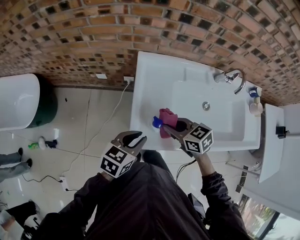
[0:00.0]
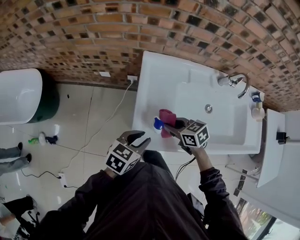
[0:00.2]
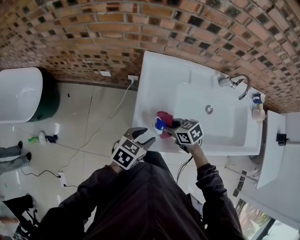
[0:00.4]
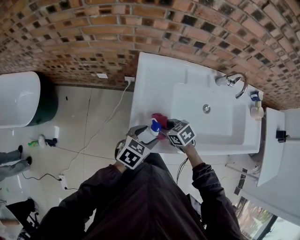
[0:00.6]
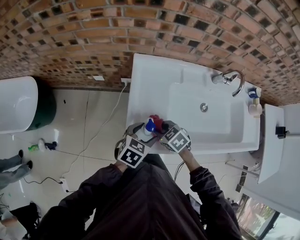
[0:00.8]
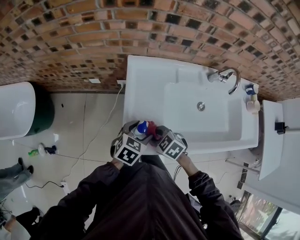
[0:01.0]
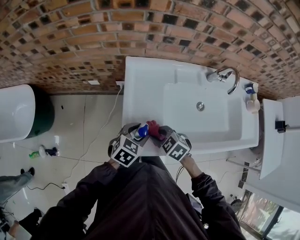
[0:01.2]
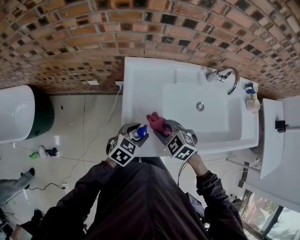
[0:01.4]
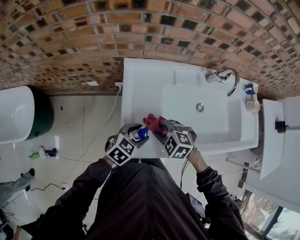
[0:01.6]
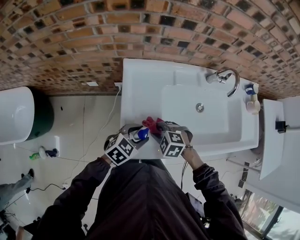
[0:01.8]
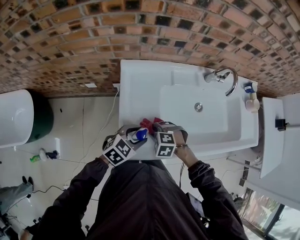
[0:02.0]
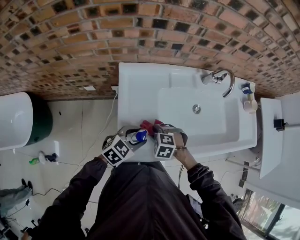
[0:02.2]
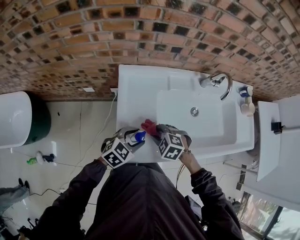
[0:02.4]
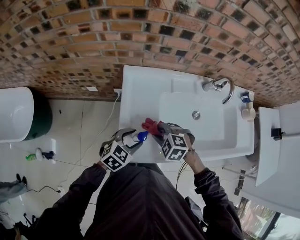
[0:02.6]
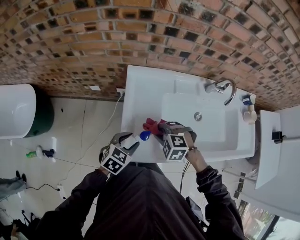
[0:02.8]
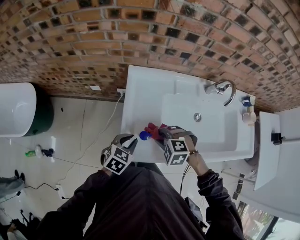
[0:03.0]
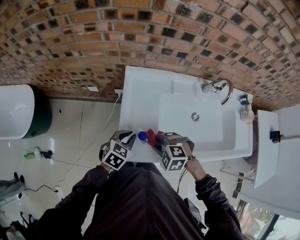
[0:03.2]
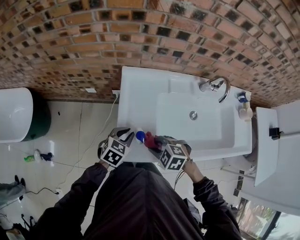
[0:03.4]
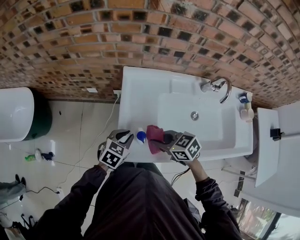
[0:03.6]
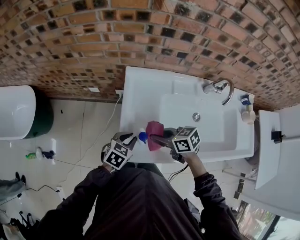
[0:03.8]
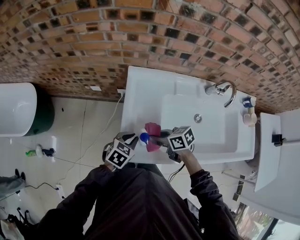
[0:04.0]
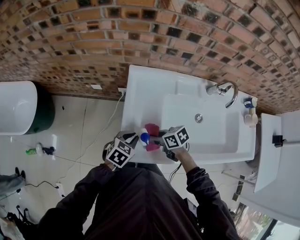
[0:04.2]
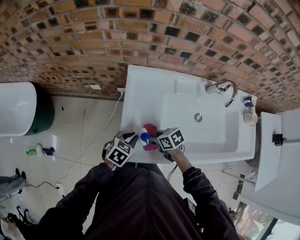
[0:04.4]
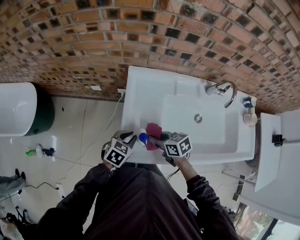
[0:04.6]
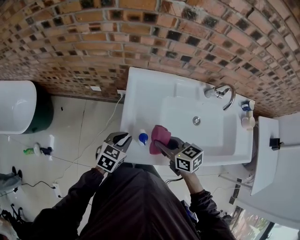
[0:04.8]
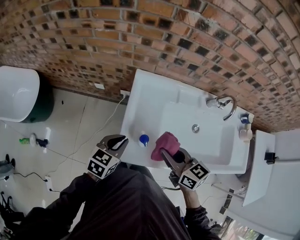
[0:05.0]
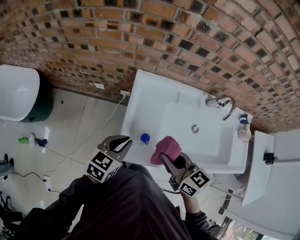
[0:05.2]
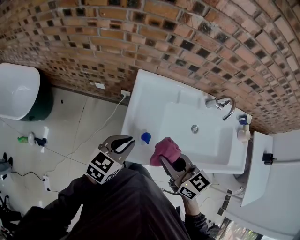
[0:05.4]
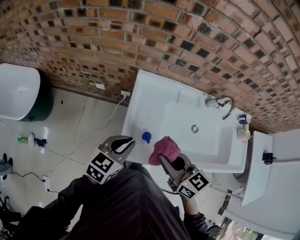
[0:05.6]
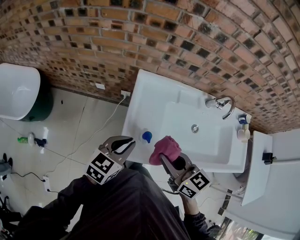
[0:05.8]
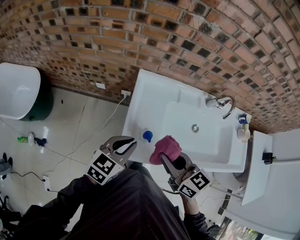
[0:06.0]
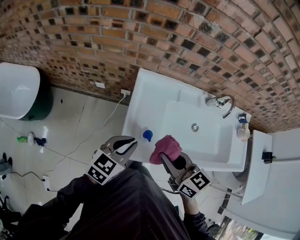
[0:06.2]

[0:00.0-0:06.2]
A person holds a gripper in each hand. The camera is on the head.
0:00.0 to 0:01.6: The left gripper moves approximately 10 cm, turns by some 20 degrees, and opens its fingers, while the right gripper changes its angle by about 40 degrees.
0:01.6 to 0:03.2: The right gripper moves roughly 10 cm downward and comes back, while the left gripper closes its fingers.
0:03.2 to 0:04.6: The right gripper moves roughly 10 cm downward and comes back, and rotates around the line of its fingers by roughly 60 degrees, clockwise from behind.
0:04.6 to 0:06.2: The grippers both shift upward by about 20 cm. The right gripper changes its angle by about 30 degrees; the left gripper rotates roughly 20 degrees.

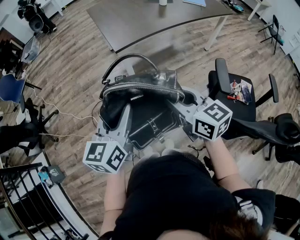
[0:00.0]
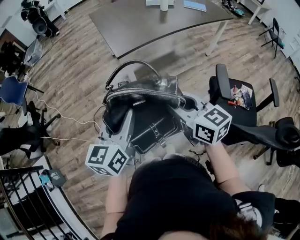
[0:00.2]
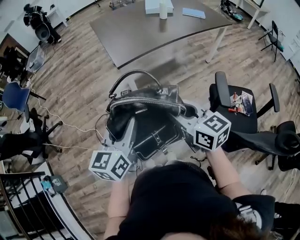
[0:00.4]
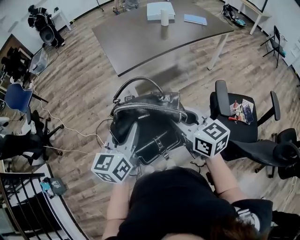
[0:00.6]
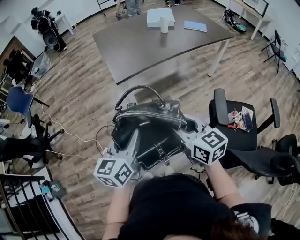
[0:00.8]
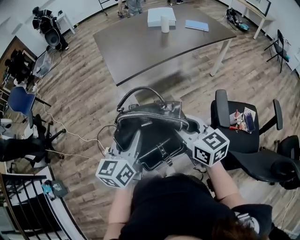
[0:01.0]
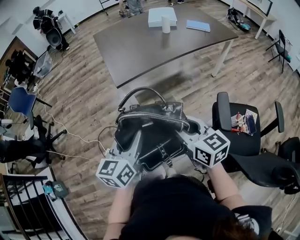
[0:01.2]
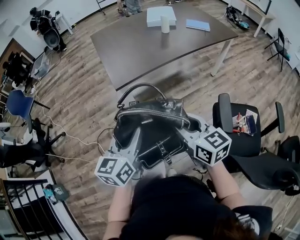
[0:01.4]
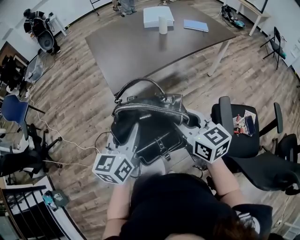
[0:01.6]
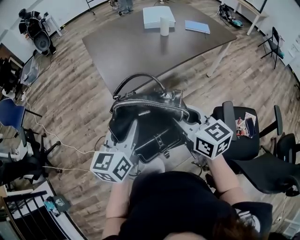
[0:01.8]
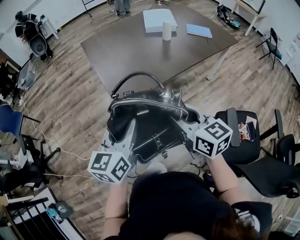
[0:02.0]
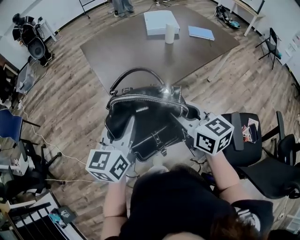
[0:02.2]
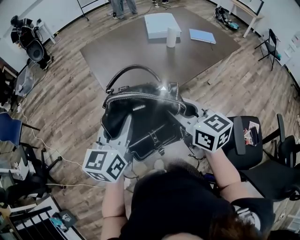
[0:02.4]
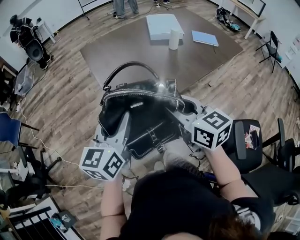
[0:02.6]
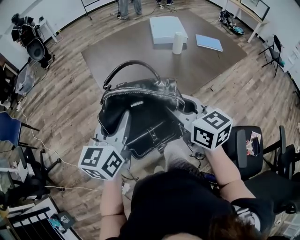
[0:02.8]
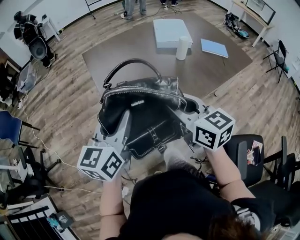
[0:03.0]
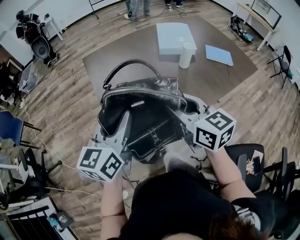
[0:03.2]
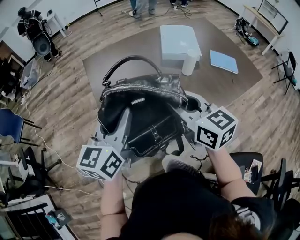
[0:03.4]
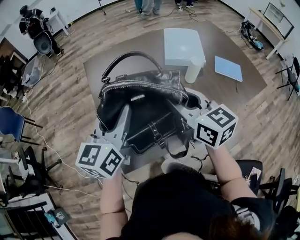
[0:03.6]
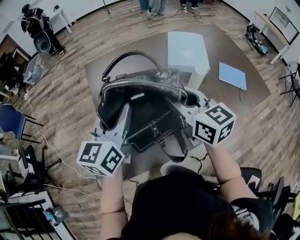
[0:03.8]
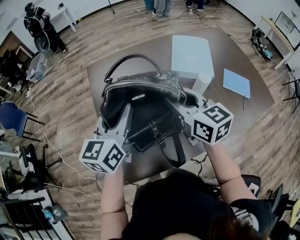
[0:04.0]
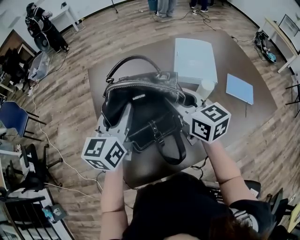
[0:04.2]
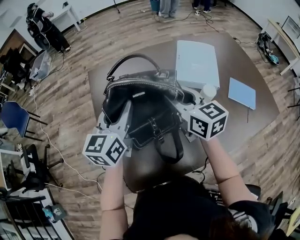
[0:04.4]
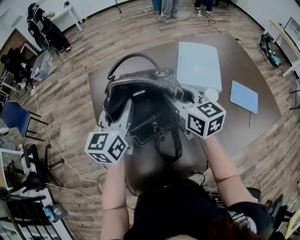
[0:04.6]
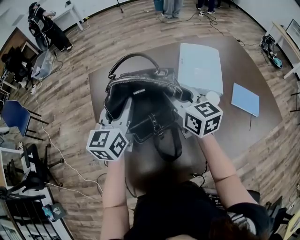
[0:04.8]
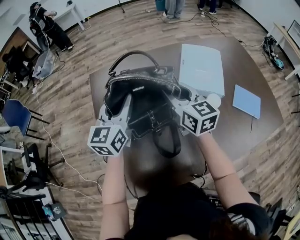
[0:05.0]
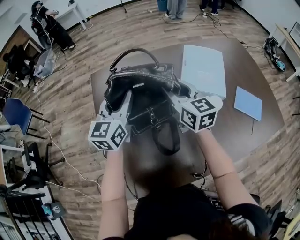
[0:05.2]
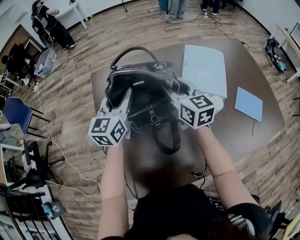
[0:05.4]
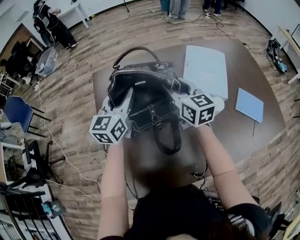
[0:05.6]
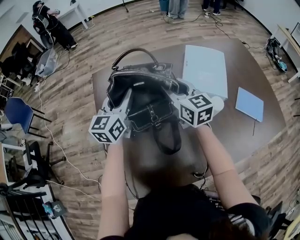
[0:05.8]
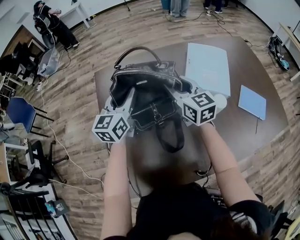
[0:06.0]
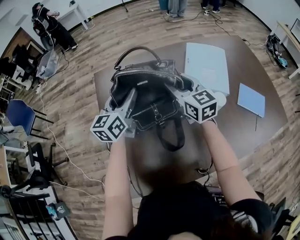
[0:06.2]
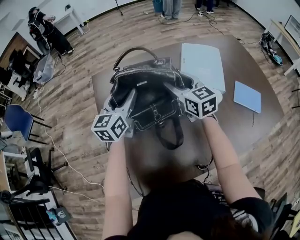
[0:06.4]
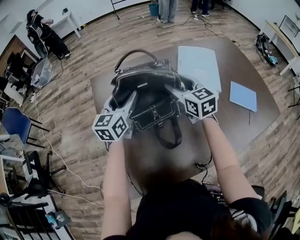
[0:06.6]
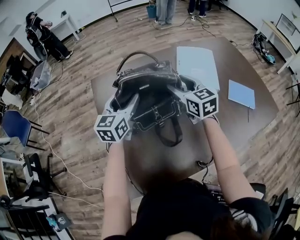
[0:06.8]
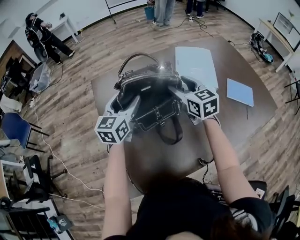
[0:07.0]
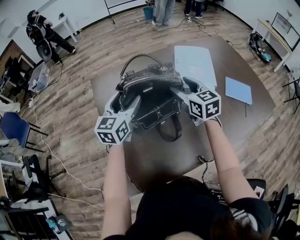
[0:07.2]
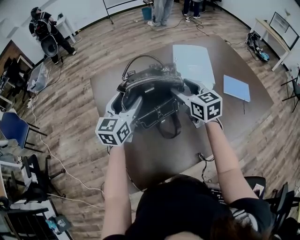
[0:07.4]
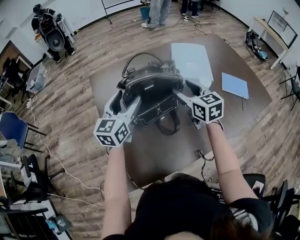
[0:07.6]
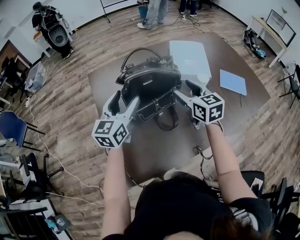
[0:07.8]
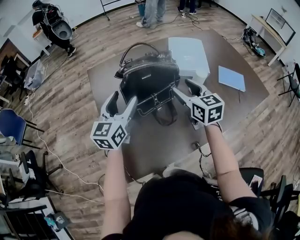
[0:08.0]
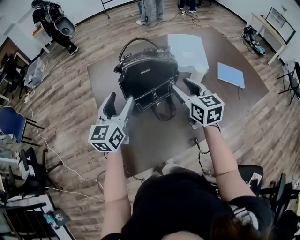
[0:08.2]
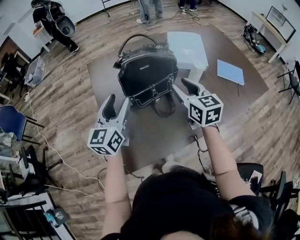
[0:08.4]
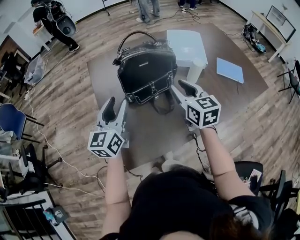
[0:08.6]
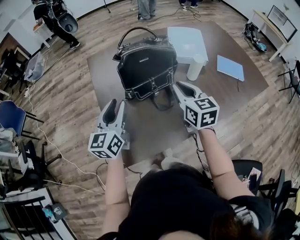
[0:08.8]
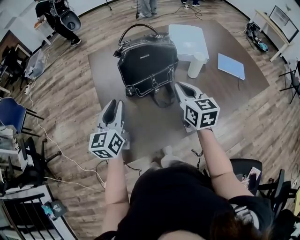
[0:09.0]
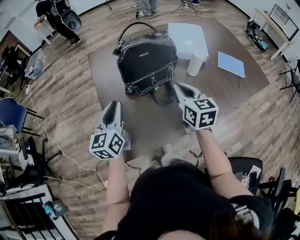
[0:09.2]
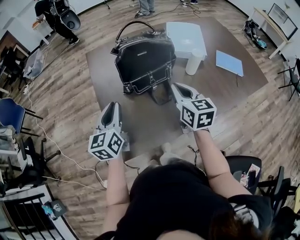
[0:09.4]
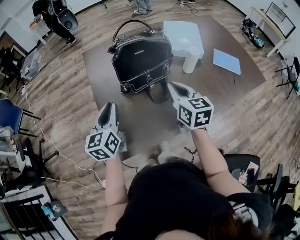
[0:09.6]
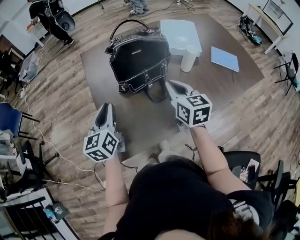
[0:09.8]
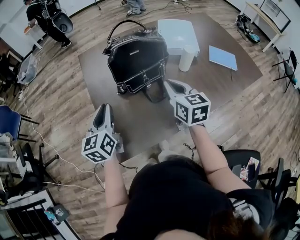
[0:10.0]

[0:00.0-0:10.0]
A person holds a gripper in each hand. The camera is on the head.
0:00.0 to 0:01.4: The left gripper is displaced forward and to the right by about 15 cm; the right gripper heads to the right and forward, covering approximately 15 cm.
0:01.4 to 0:02.8: The grippers both shift forward by roughly 35 cm.
0:02.8 to 0:04.2: Both grippers move forward, about 35 cm.
0:04.2 to 0:05.8: Both grippers move forward, some 15 cm.
0:05.8 to 0:07.2: The grippers both shift backward by roughly 5 cm. The left gripper opens up. Meanwhile the right gripper opens up.
0:07.2 to 0:08.6: Both grippers travel together backward, some 15 cm. The right gripper closes.
0:08.6 to 0:10.0: The left gripper moves some 5 cm, and closes up, while the right gripper closes.

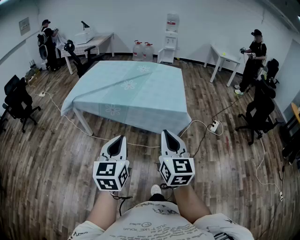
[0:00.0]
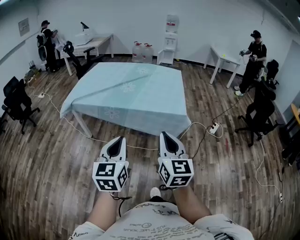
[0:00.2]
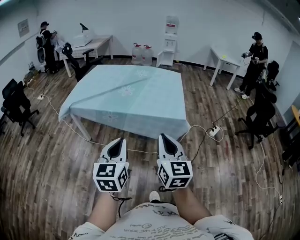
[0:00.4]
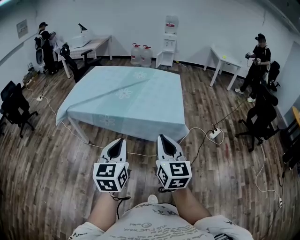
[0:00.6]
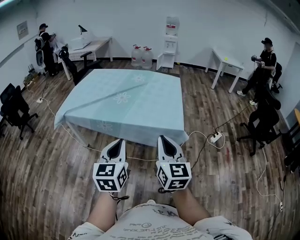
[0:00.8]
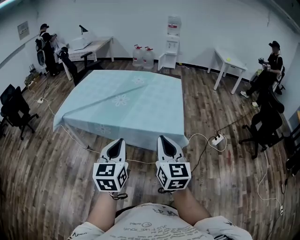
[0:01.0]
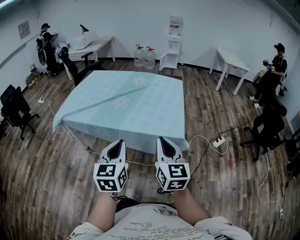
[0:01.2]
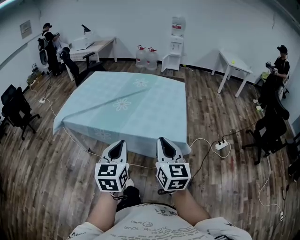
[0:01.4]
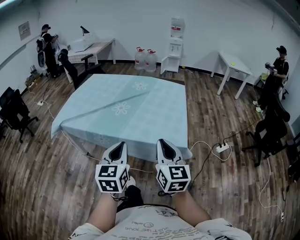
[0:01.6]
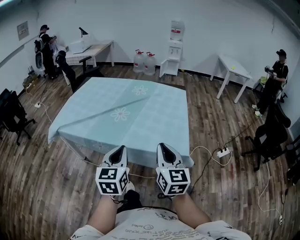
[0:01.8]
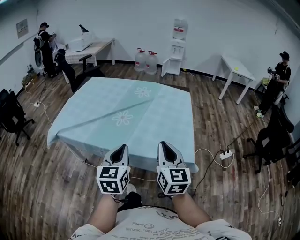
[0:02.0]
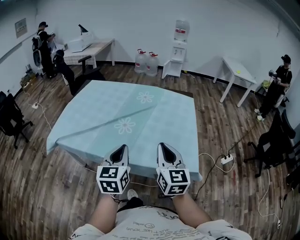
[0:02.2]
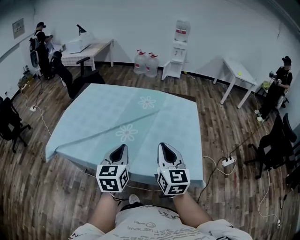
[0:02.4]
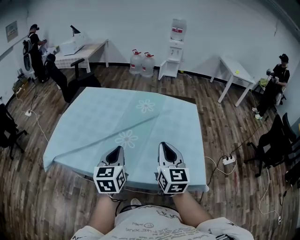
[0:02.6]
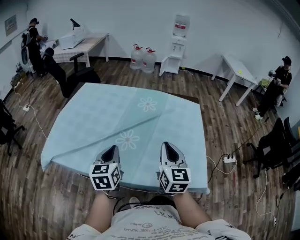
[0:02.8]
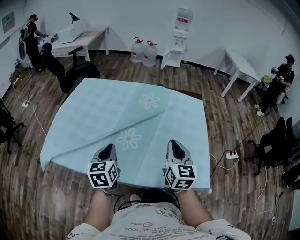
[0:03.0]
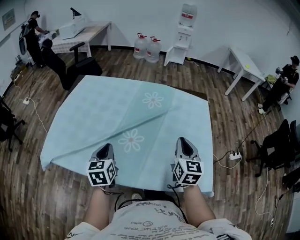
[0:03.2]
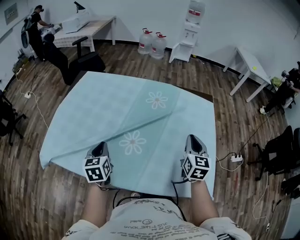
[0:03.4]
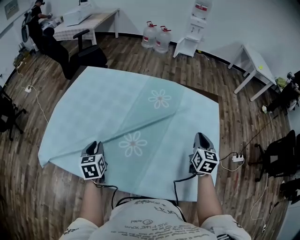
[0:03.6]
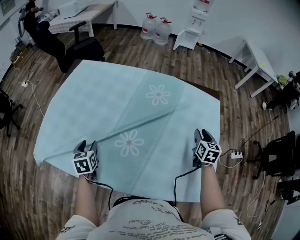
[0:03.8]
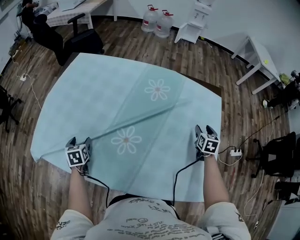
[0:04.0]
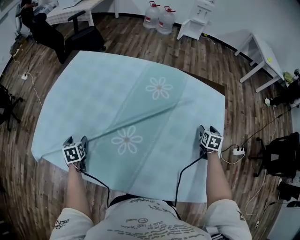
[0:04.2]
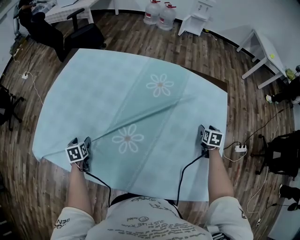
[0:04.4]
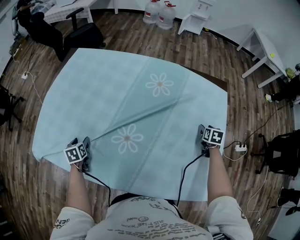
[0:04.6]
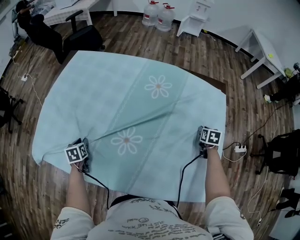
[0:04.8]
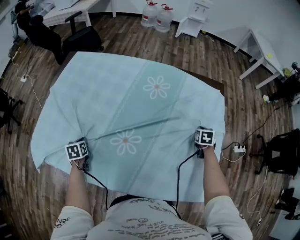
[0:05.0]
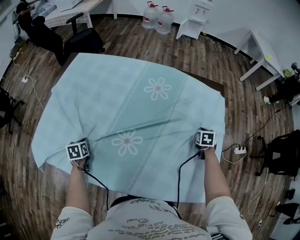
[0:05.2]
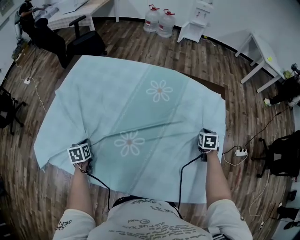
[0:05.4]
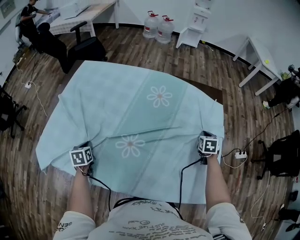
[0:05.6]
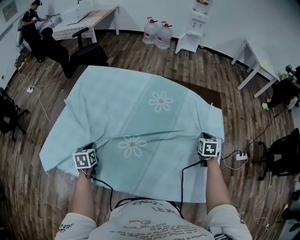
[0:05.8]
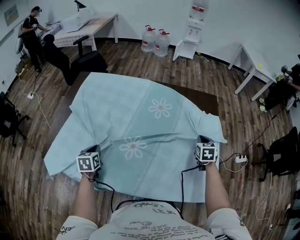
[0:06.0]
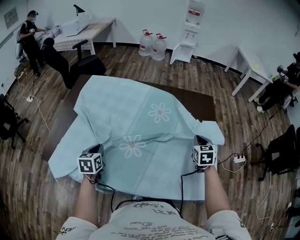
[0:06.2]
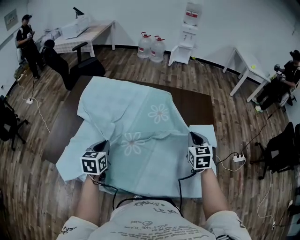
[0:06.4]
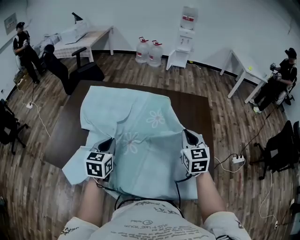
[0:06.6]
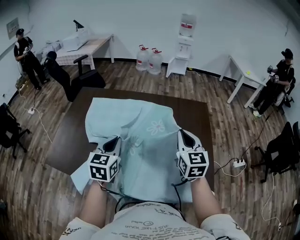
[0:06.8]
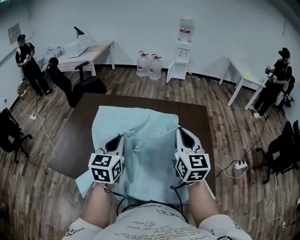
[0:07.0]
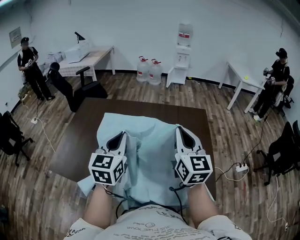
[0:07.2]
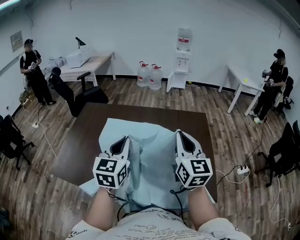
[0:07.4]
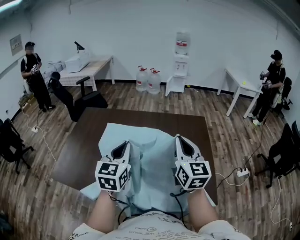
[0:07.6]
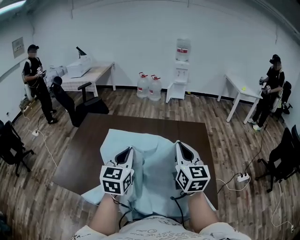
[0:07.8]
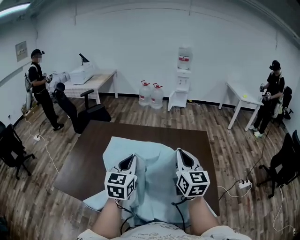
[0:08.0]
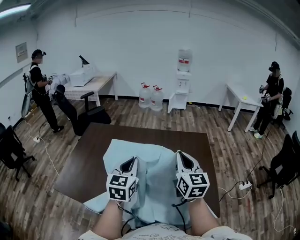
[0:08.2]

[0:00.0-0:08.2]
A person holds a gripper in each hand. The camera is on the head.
0:00.0 to 0:01.6: The two grippers go roughly 30 cm forward.
0:01.6 to 0:03.2: Both grippers are carried forward, some 40 cm.
0:03.2 to 0:05.0: The left gripper shifts approximately 30 cm downward, to the left and forward, tips its fingers downward by some 30 degrees, and opens, then closes again. Meanwhile the right gripper heads downward, forward and to the right, covering some 35 cm, tips its fingers downward by some 40 degrees, and opens, then closes again.
0:05.0 to 0:06.6: The right gripper travels upward, to the left and backward by approximately 35 cm, and points its fingers some 40 degrees further upward. Meanwhile the left gripper moves upward and to the right, approximately 30 cm, and tilts its fingers some 30 degrees upward.
0:06.6 to 0:08.2: The left gripper travels upward and to the right by about 15 cm, while the right gripper is displaced upward, to the left and backward by about 15 cm, and swivels some 20 degrees.
